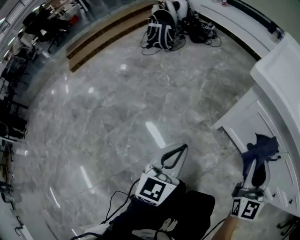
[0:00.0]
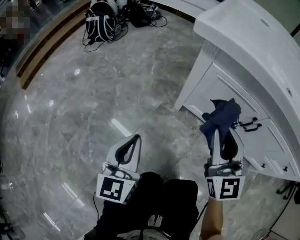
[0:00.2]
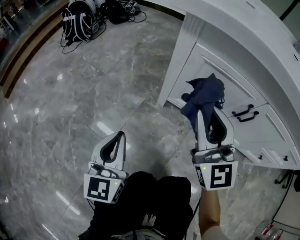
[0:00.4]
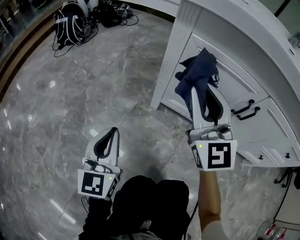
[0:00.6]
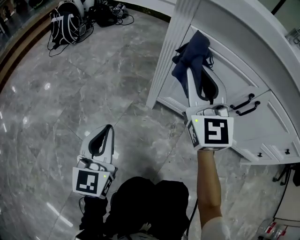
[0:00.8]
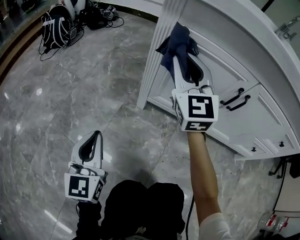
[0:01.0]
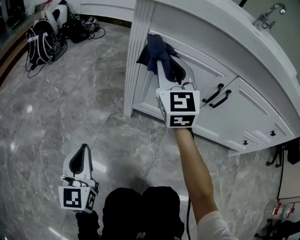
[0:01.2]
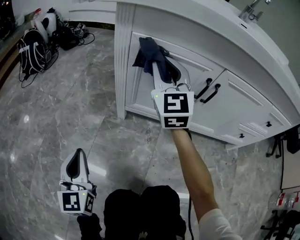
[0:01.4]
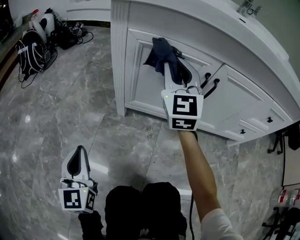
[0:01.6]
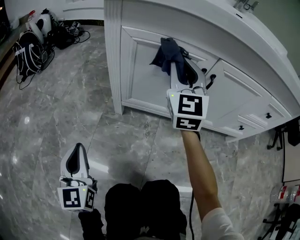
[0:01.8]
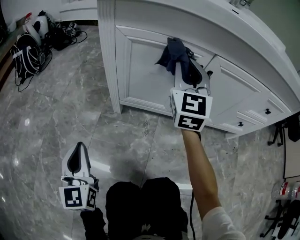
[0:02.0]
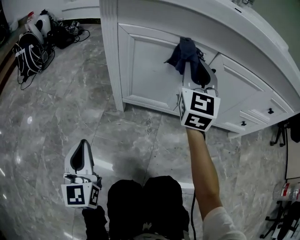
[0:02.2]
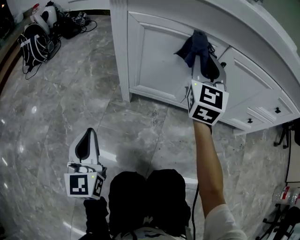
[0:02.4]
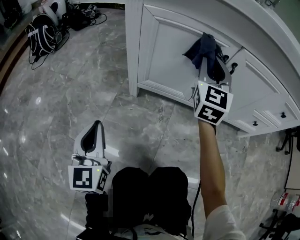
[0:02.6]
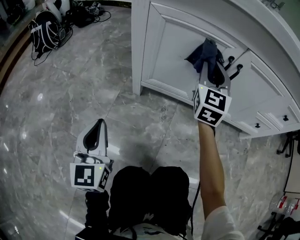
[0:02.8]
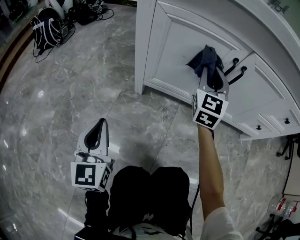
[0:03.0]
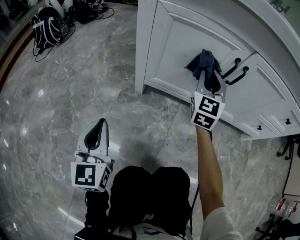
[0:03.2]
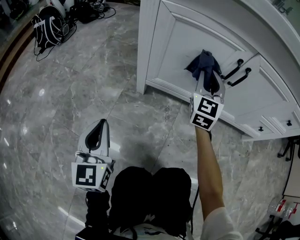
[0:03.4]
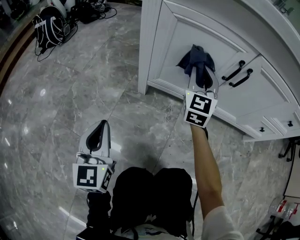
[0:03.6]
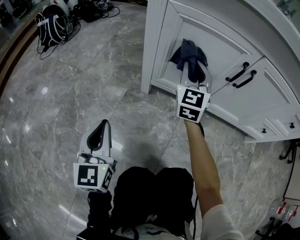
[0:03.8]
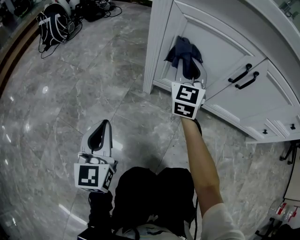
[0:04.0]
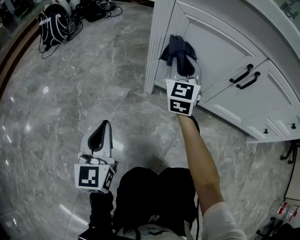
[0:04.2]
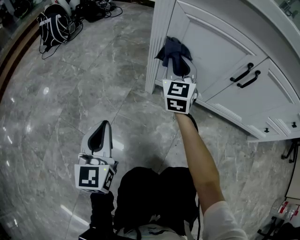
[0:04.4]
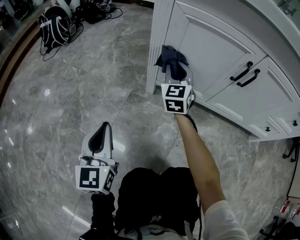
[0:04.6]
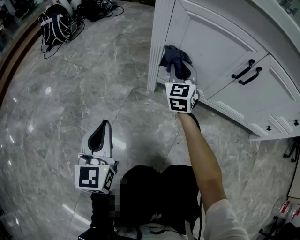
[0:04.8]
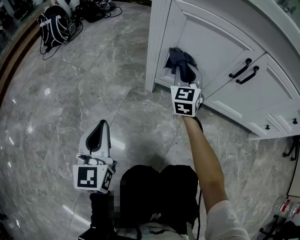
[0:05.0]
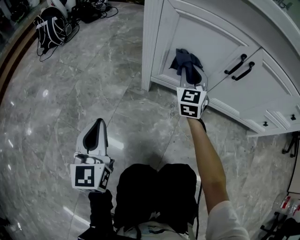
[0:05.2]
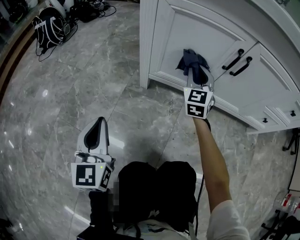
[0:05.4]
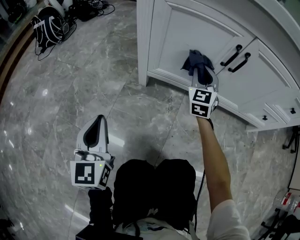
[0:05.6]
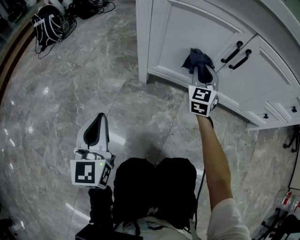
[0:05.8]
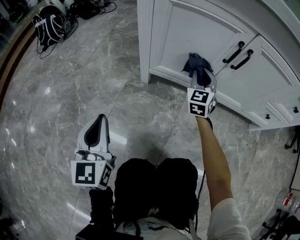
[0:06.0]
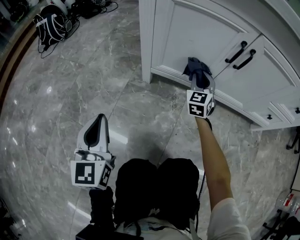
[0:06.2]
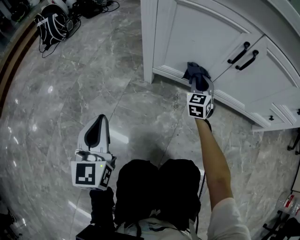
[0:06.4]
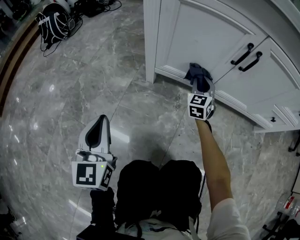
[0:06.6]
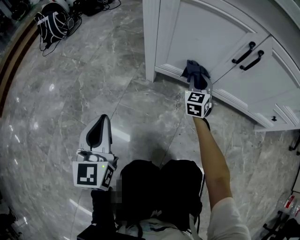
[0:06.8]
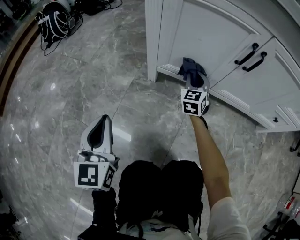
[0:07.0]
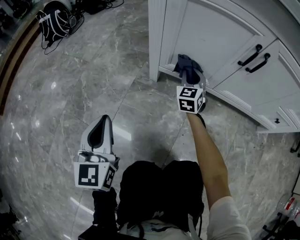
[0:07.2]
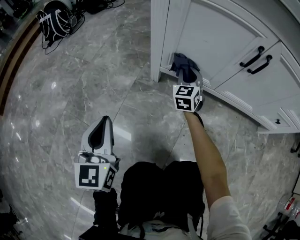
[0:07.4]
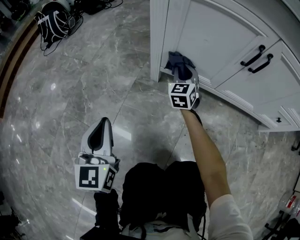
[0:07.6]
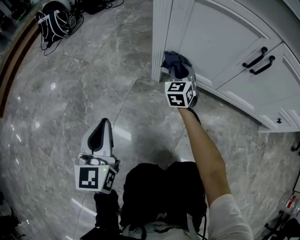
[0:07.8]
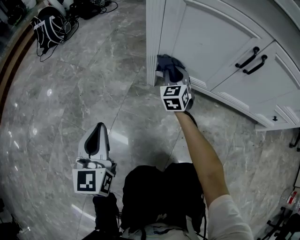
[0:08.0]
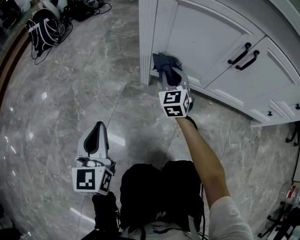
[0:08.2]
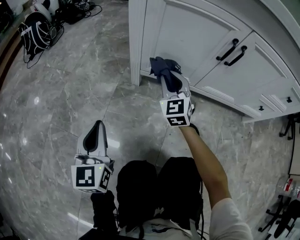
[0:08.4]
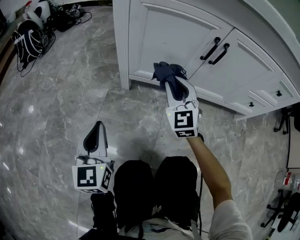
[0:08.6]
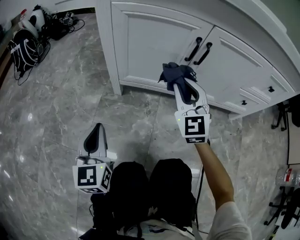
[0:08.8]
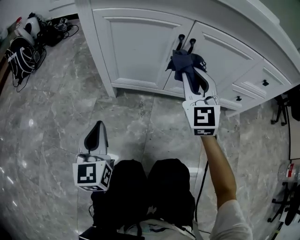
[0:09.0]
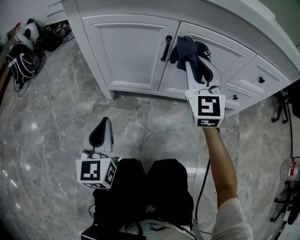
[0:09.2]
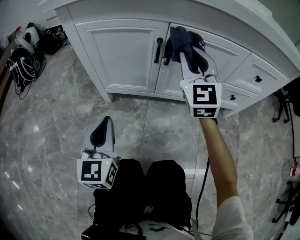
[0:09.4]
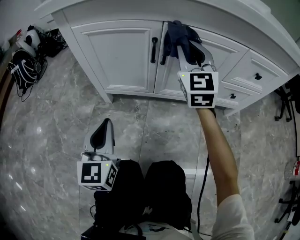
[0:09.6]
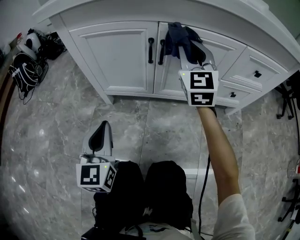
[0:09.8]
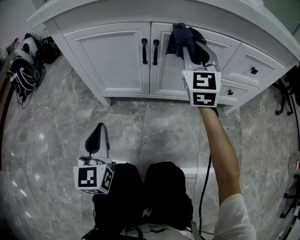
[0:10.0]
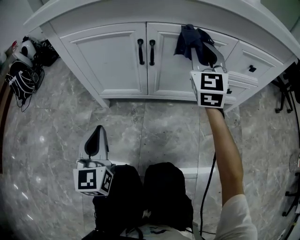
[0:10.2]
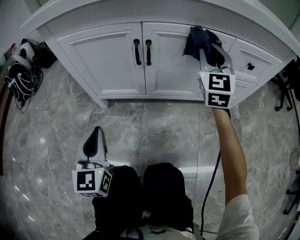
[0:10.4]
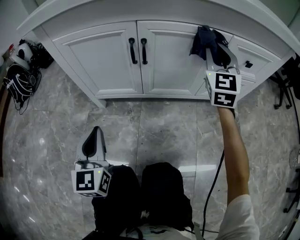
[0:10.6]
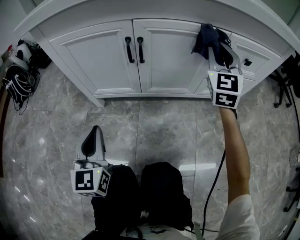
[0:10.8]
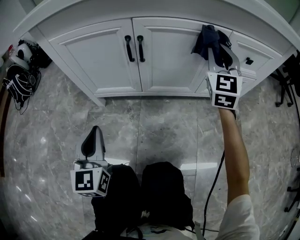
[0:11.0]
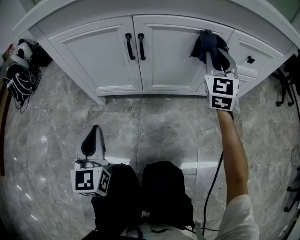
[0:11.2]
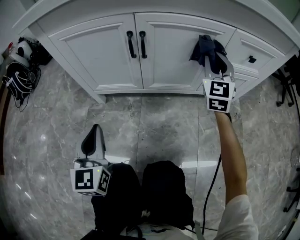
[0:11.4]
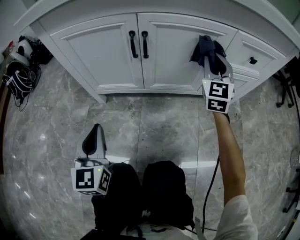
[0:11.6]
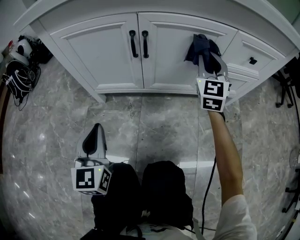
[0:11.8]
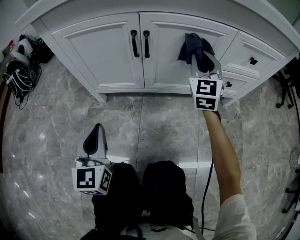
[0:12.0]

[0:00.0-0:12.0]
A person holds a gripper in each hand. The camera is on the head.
0:00.0 to 0:01.6: The left gripper shifts some 20 cm downward. Meanwhile the right gripper moves forward, downward and to the right, about 25 cm, and rotates roughly 20 degrees.
0:01.6 to 0:03.0: The right gripper goes some 10 cm downward and to the right.
0:03.0 to 0:04.4: The right gripper heads to the left, covering some 15 cm.
0:04.4 to 0:06.0: The right gripper heads to the right and downward, covering approximately 20 cm.
0:06.0 to 0:07.6: The right gripper travels to the left and downward by about 15 cm.
0:07.6 to 0:09.0: The right gripper travels upward, to the right and backward by approximately 35 cm, and changes its angle by roughly 20 degrees. The left gripper heads to the right, covering about 15 cm.
0:09.0 to 0:10.4: The right gripper heads to the right, covering some 20 cm. Meanwhile the left gripper travels to the right by roughly 10 cm.
0:10.4 to 0:12.0: The right gripper travels downward by roughly 10 cm.

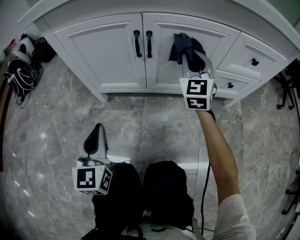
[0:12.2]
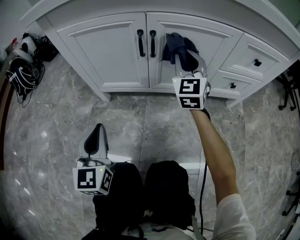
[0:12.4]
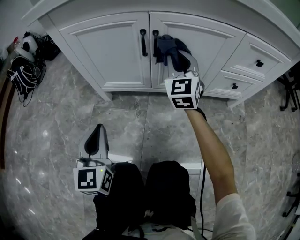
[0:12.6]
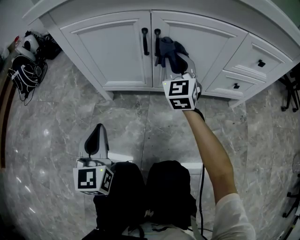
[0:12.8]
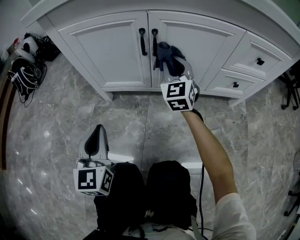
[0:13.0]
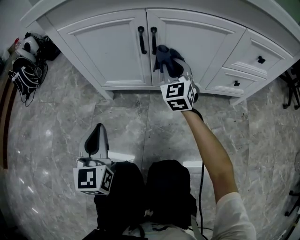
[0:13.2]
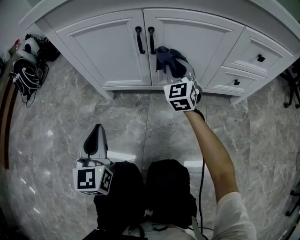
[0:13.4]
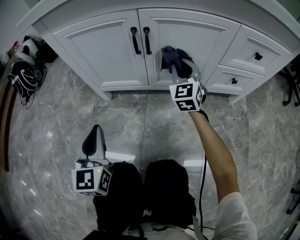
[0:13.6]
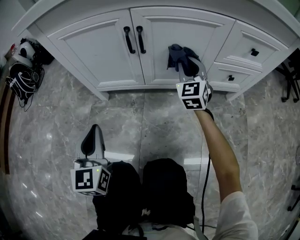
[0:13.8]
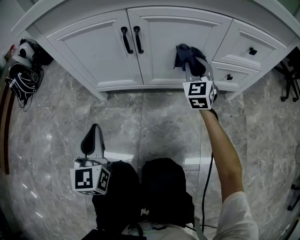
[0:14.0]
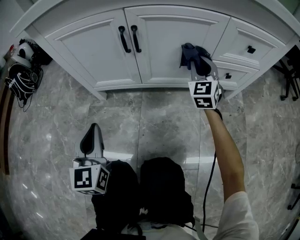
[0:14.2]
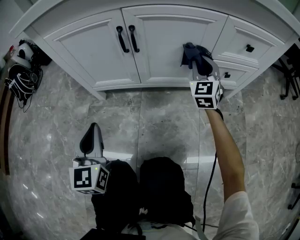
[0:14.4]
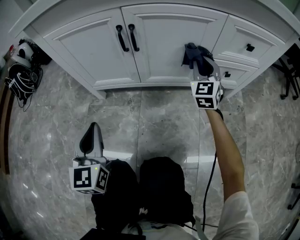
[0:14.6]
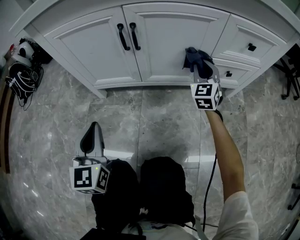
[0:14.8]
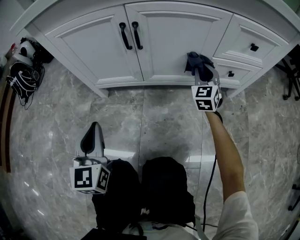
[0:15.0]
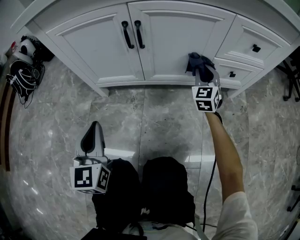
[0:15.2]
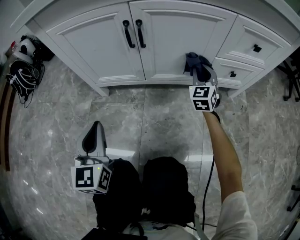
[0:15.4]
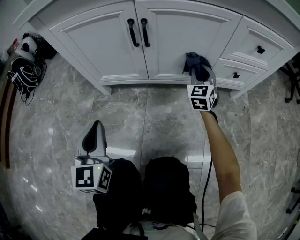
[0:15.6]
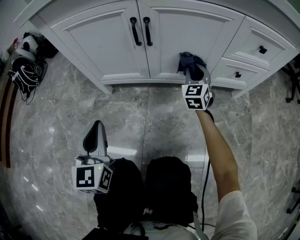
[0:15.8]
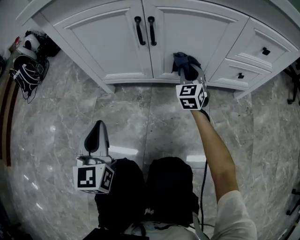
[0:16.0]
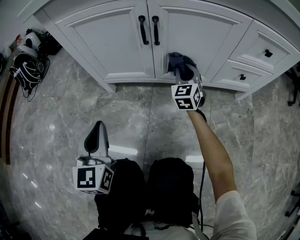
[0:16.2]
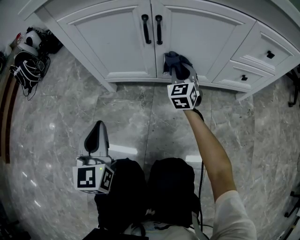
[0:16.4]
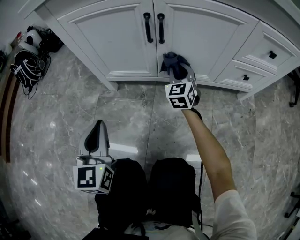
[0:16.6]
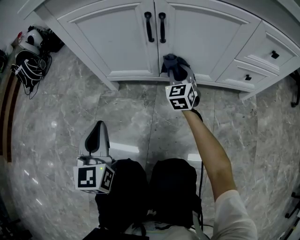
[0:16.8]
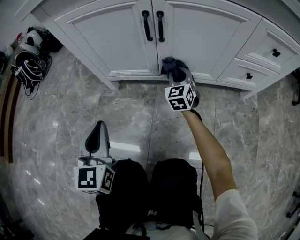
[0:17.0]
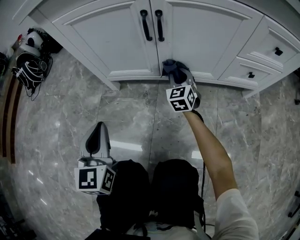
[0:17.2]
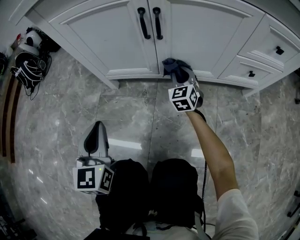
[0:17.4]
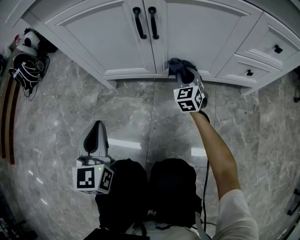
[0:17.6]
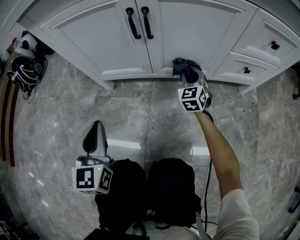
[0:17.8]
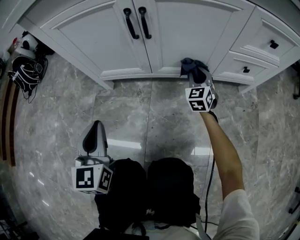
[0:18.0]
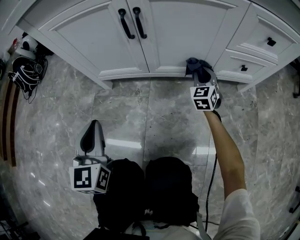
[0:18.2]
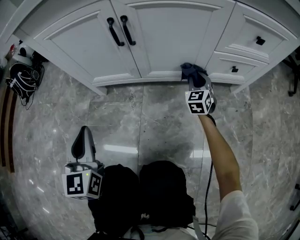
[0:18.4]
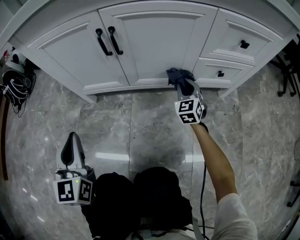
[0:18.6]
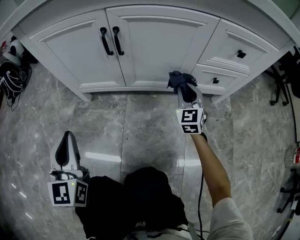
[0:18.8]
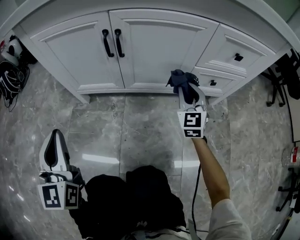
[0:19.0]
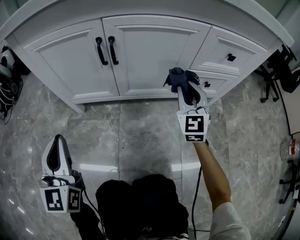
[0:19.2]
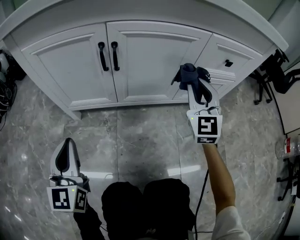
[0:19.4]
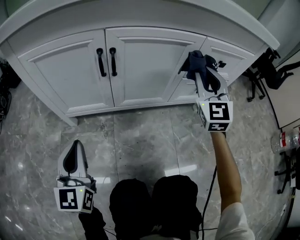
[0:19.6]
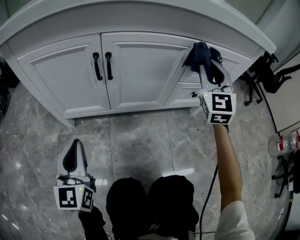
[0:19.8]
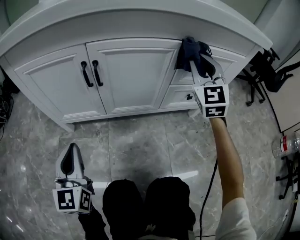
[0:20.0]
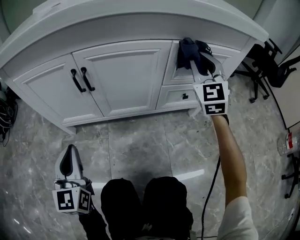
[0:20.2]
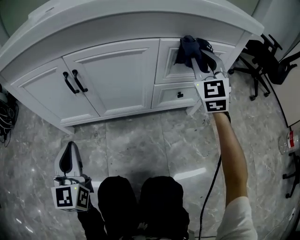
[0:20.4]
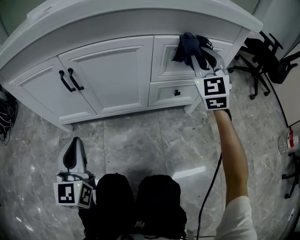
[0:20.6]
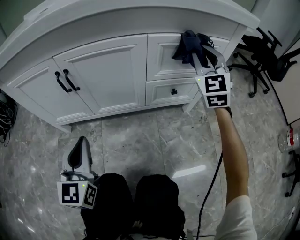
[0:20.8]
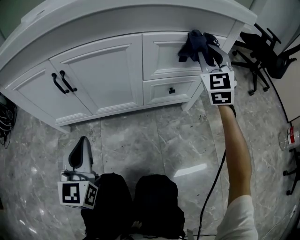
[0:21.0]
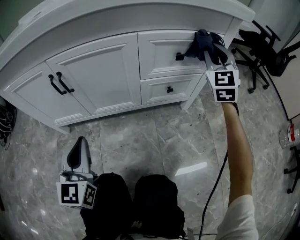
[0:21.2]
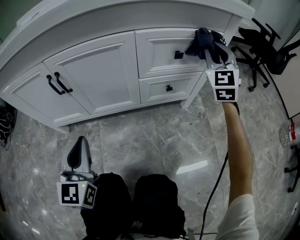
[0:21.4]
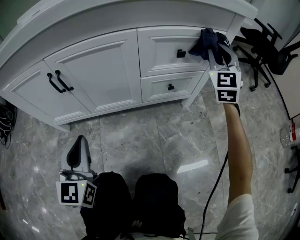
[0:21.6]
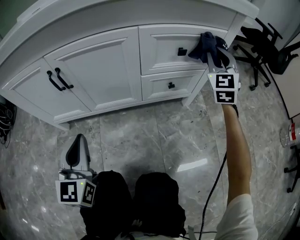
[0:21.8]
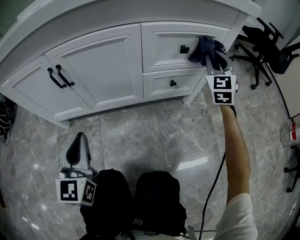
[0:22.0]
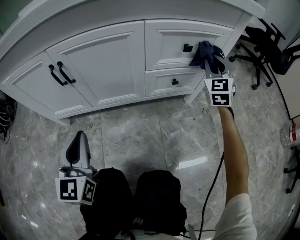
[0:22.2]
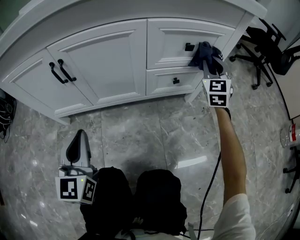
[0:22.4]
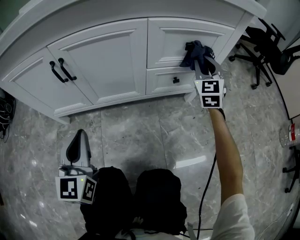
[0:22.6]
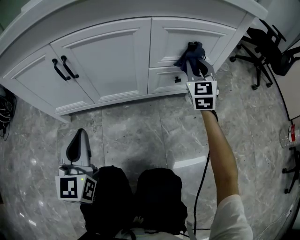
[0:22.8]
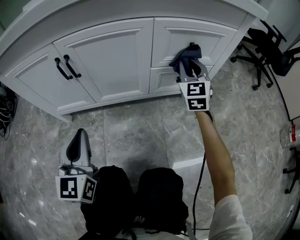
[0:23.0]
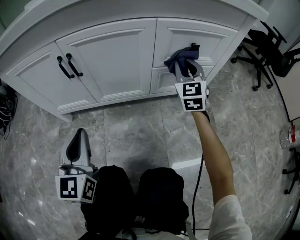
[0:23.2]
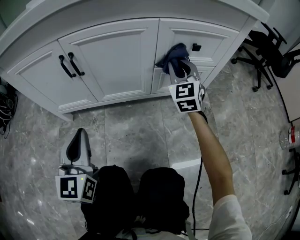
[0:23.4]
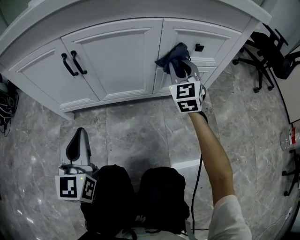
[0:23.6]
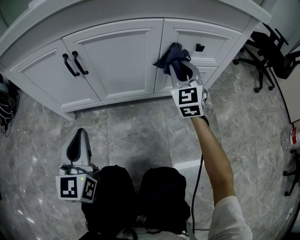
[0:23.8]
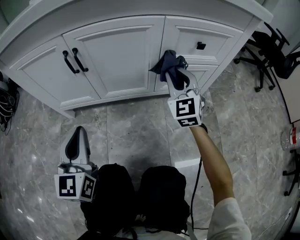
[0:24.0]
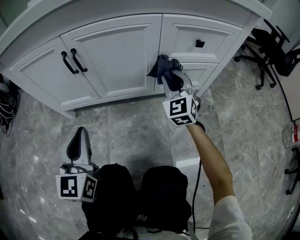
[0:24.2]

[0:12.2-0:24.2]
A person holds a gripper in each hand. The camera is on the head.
0:12.2 to 0:13.8: The right gripper shifts roughly 10 cm downward, and goes to the left and returns, roughly 10 cm each way.
0:13.8 to 0:15.2: The right gripper moves to the right and downward, some 10 cm.
0:15.2 to 0:16.6: The right gripper goes roughly 20 cm to the left.
0:16.6 to 0:18.2: The right gripper goes roughly 15 cm to the right and downward.
0:18.2 to 0:19.8: The left gripper reaches roughly 10 cm upward, then returns, while the right gripper travels upward by approximately 35 cm, and changes its angle by roughly 30 degrees.
0:19.8 to 0:21.2: Both grippers move to the right, about 20 cm.
0:21.2 to 0:22.6: The right gripper shifts some 10 cm downward.
0:22.6 to 0:24.2: The right gripper is displaced to the left by roughly 15 cm.
